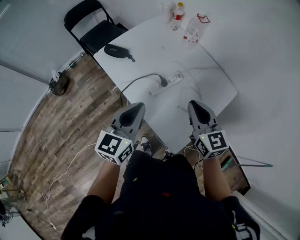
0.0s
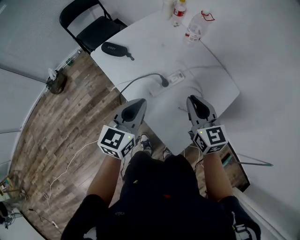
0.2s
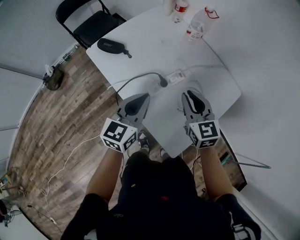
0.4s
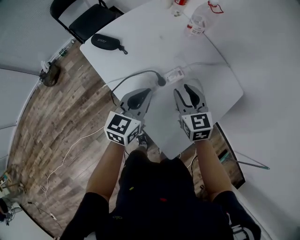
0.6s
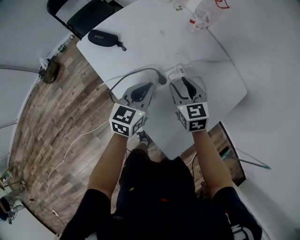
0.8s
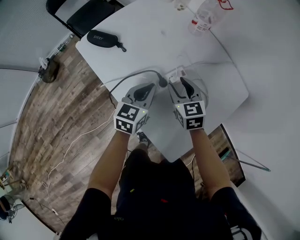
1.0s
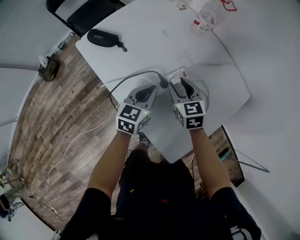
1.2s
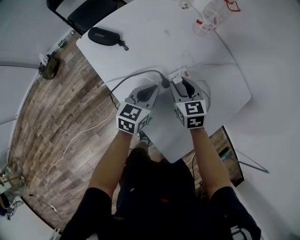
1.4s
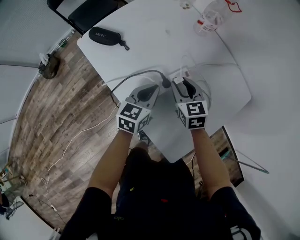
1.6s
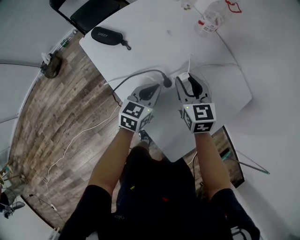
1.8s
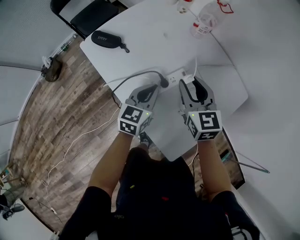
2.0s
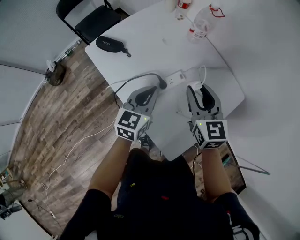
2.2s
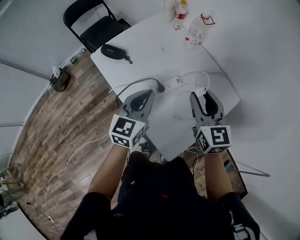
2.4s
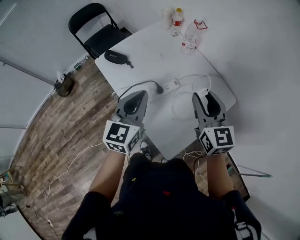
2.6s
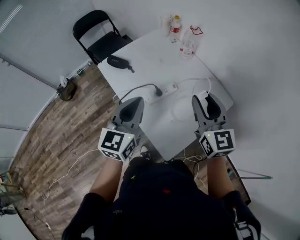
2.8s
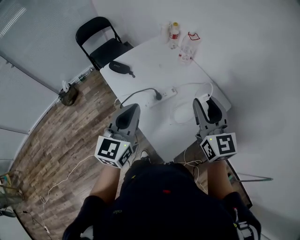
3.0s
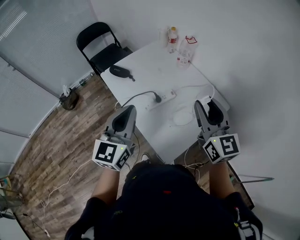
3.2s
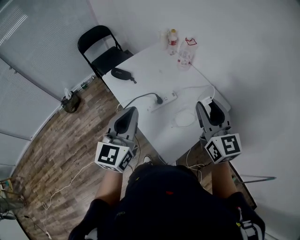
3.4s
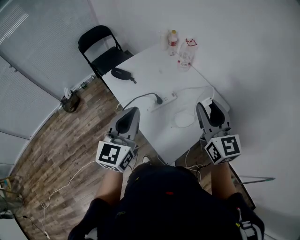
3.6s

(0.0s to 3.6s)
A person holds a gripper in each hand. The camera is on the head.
0.0s - 1.8s: The right gripper shifts some 25 cm forward and downward, and opens up, while the left gripper travels downward and forward by roughly 25 cm.
1.8s - 3.6s: The two grippers go about 35 cm upward and backward. The left gripper turns by some 30 degrees. The right gripper rotates about 30 degrees.

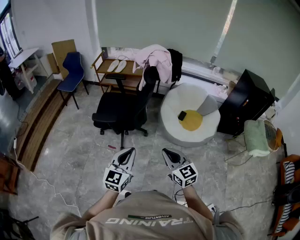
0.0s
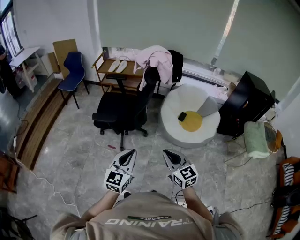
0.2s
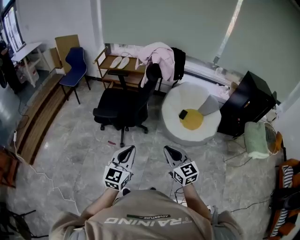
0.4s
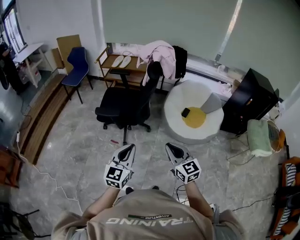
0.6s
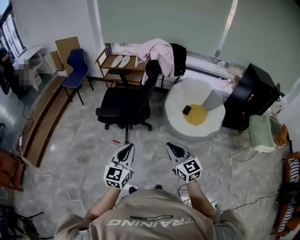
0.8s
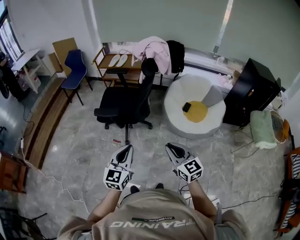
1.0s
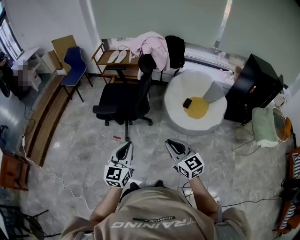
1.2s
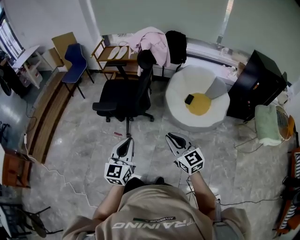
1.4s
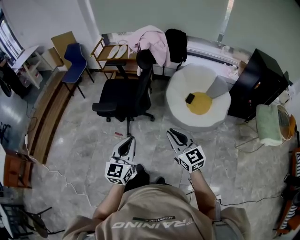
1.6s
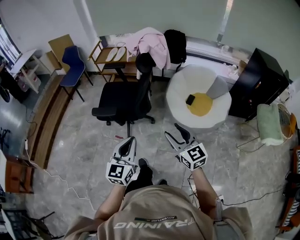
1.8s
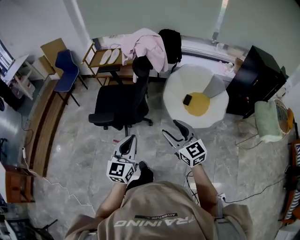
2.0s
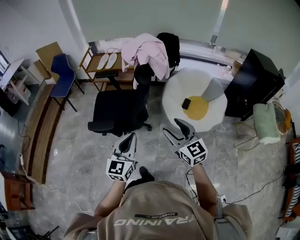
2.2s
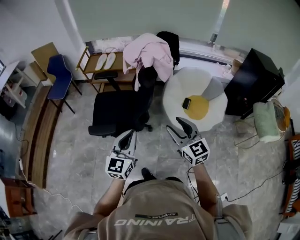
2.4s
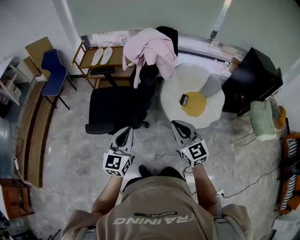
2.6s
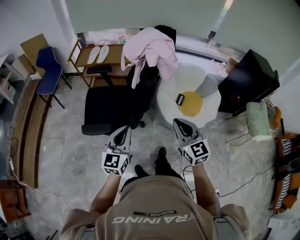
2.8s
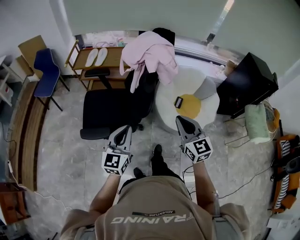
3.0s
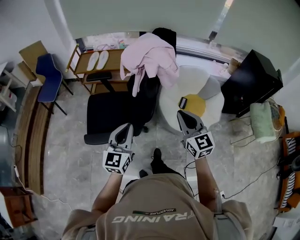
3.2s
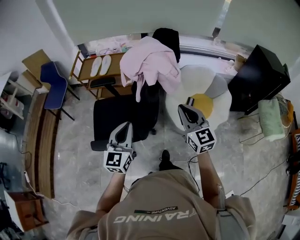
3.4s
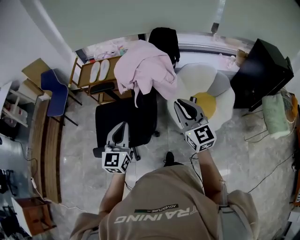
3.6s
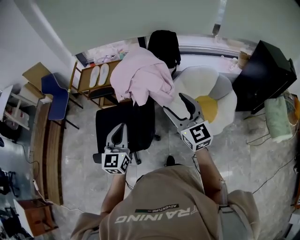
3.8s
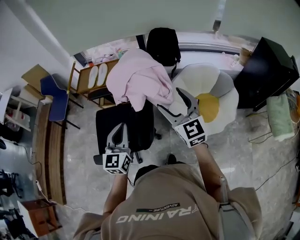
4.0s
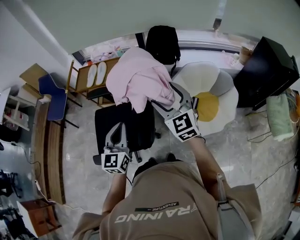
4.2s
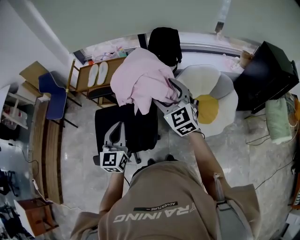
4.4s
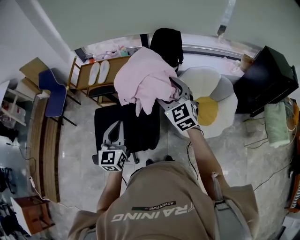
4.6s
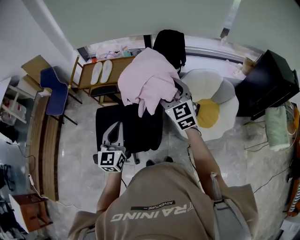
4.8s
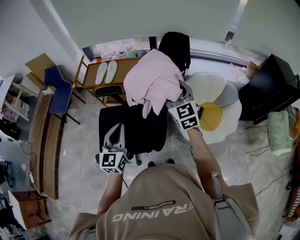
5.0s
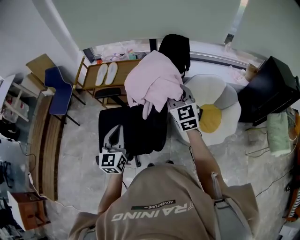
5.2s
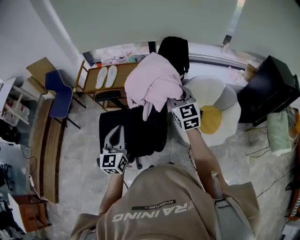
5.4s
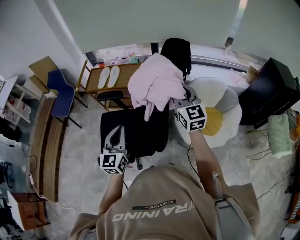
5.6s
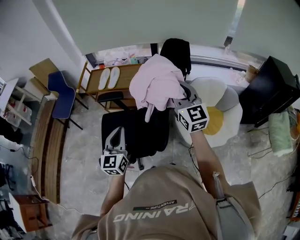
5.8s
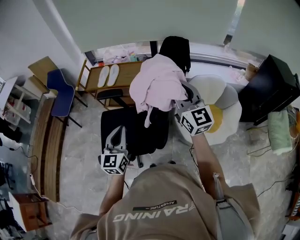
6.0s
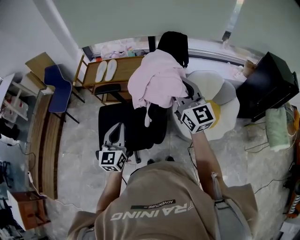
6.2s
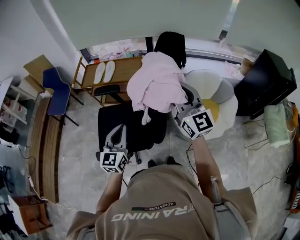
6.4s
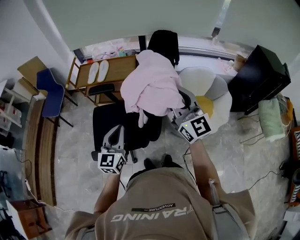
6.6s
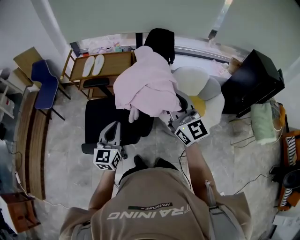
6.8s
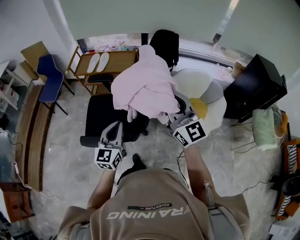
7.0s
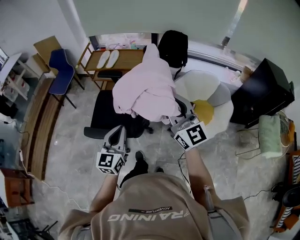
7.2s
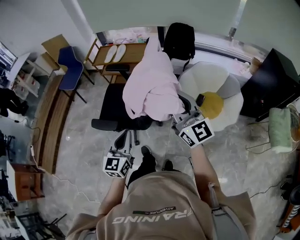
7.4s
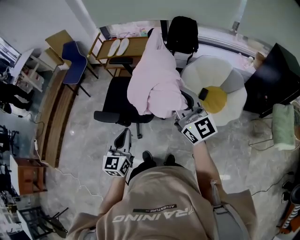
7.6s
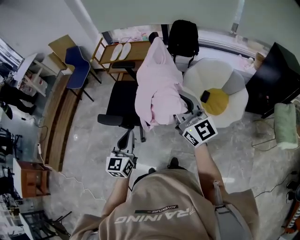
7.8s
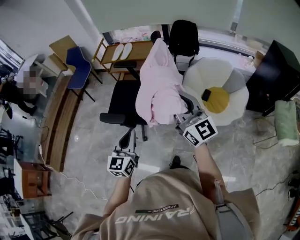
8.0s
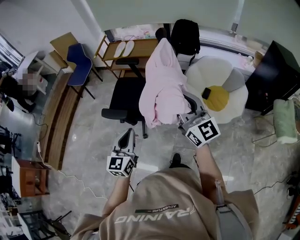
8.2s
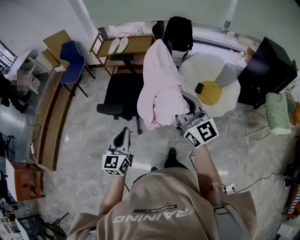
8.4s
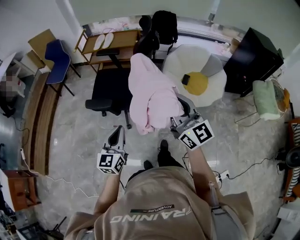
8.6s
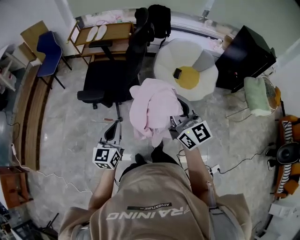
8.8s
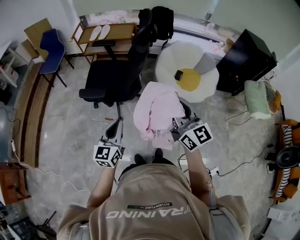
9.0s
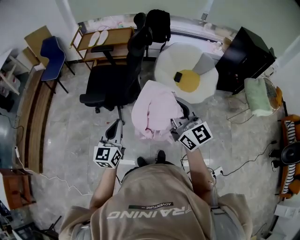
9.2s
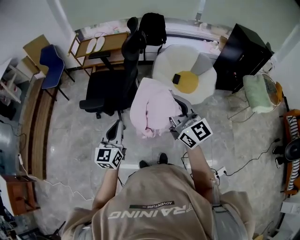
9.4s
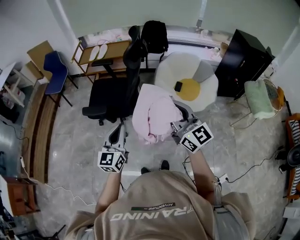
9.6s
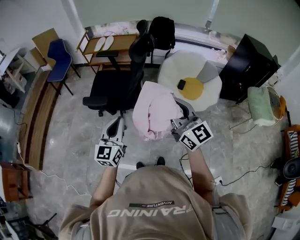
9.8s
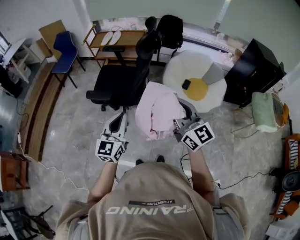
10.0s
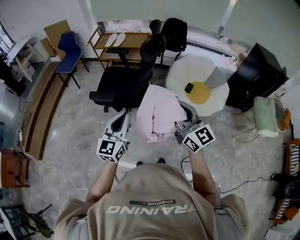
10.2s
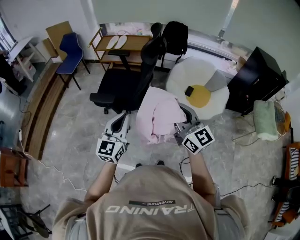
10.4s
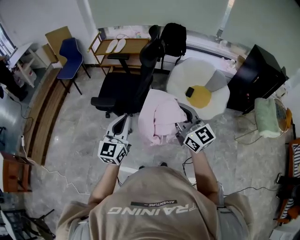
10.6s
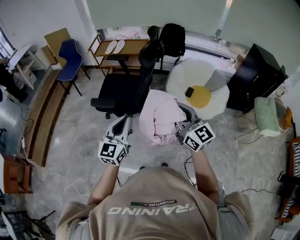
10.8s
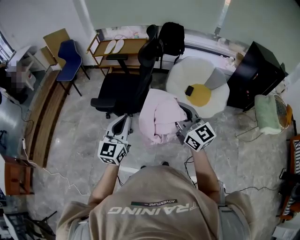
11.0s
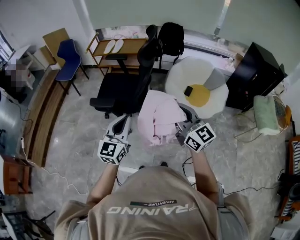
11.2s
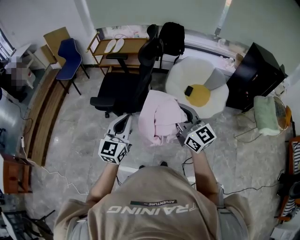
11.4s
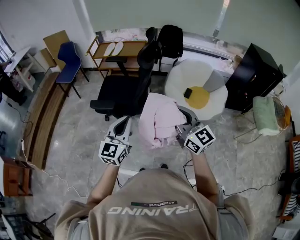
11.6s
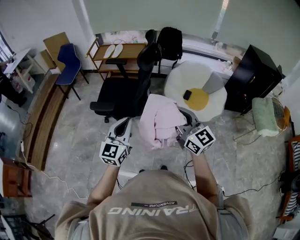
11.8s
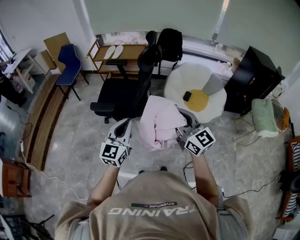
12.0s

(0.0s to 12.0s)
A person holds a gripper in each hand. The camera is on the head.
0.0s - 1.6s: Both grippers move to the right, approximately 5 cm.
1.6s - 3.0s: Both grippers travel together forward, approximately 25 cm. The right gripper opens and closes again.
3.0s - 4.4s: The grippers both shift forward by roughly 25 cm. The right gripper opens.
4.4s - 6.0s: The right gripper travels upward by roughly 10 cm, swivels approximately 30 degrees, and closes; the left gripper goes about 5 cm to the left.
6.0s - 7.6s: The grippers both shift backward by approximately 25 cm.
7.6s - 9.0s: The left gripper goes roughly 15 cm backward and to the left, while the right gripper moves backward, about 20 cm.
9.0s - 10.4s: The left gripper shifts about 5 cm upward.
10.4s - 12.0s: Both grippers stay put.

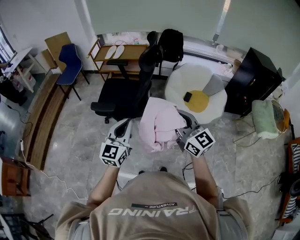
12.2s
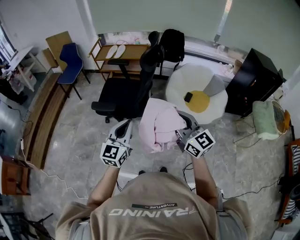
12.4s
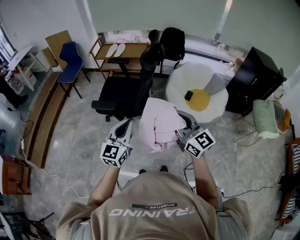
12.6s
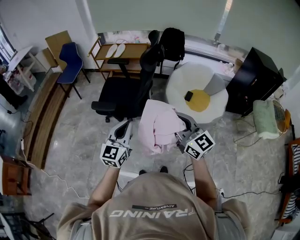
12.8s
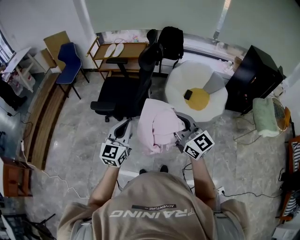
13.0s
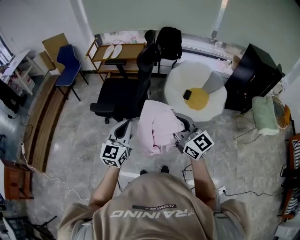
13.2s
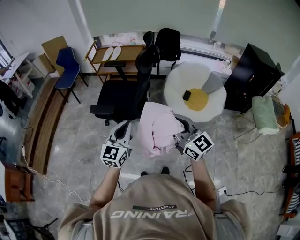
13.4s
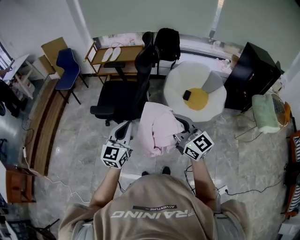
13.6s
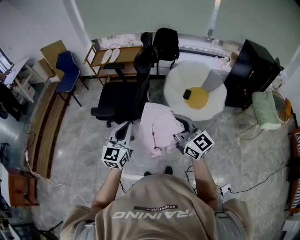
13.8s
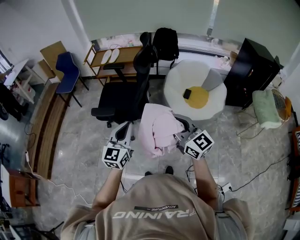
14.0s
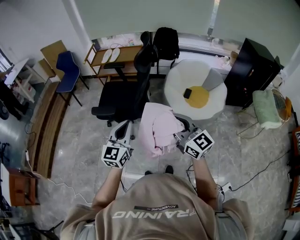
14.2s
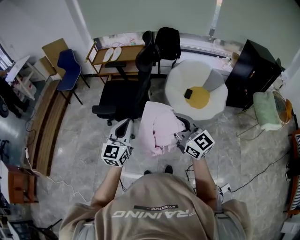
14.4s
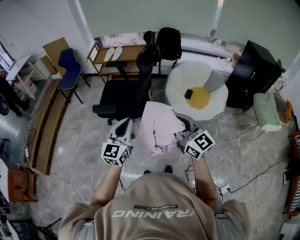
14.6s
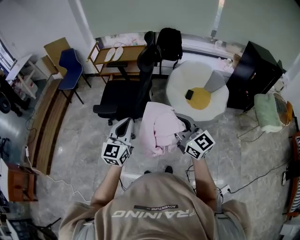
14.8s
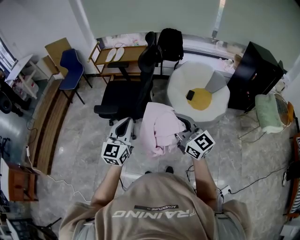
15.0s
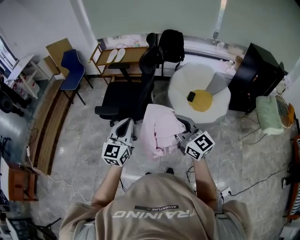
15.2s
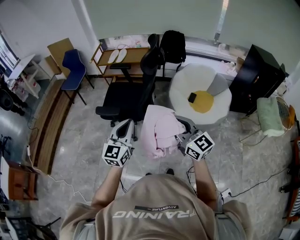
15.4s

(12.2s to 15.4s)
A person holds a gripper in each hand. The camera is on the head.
12.2s - 15.4s: The grippers move only a little.

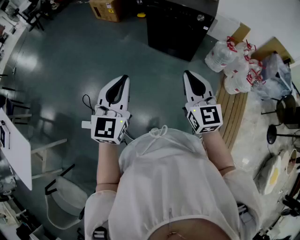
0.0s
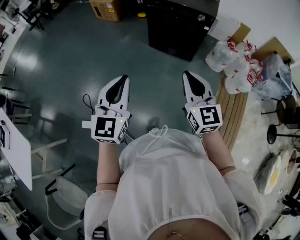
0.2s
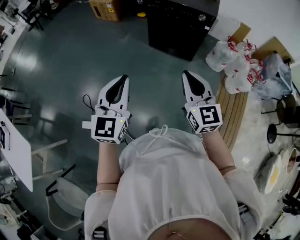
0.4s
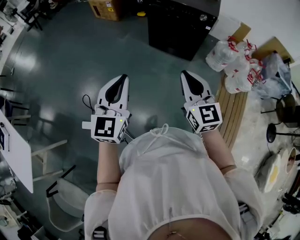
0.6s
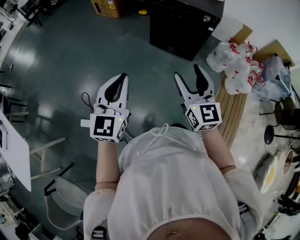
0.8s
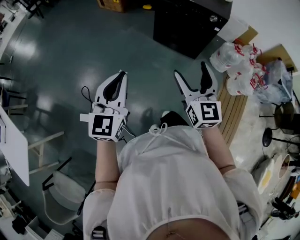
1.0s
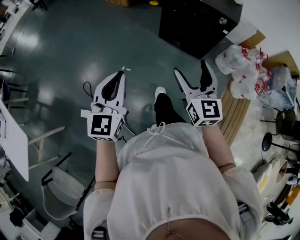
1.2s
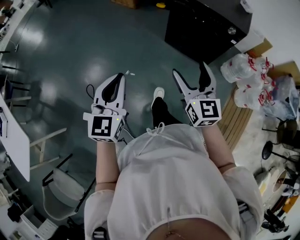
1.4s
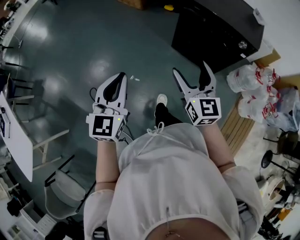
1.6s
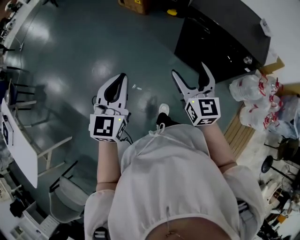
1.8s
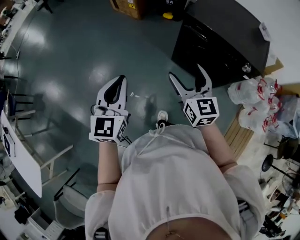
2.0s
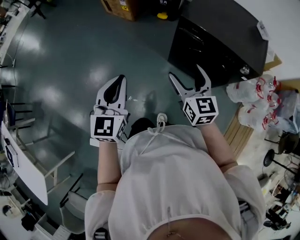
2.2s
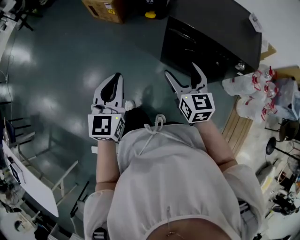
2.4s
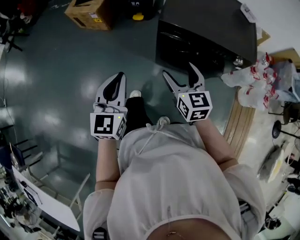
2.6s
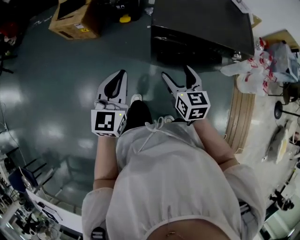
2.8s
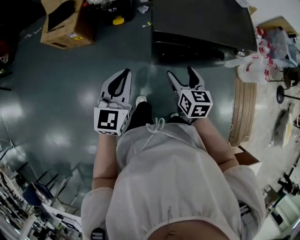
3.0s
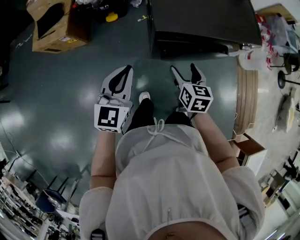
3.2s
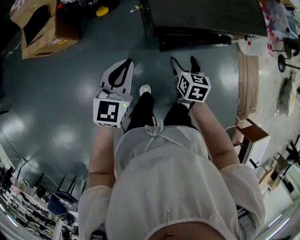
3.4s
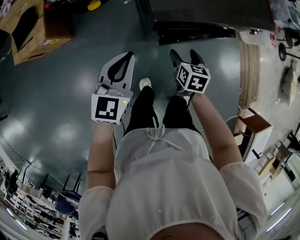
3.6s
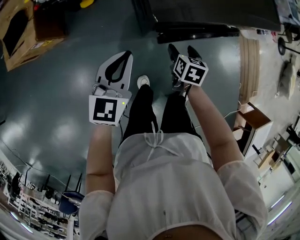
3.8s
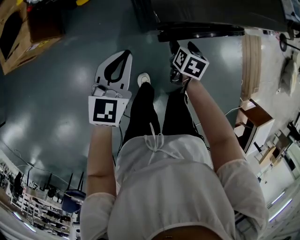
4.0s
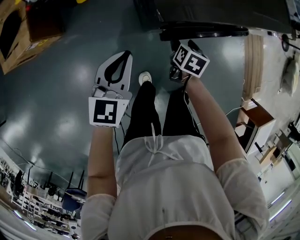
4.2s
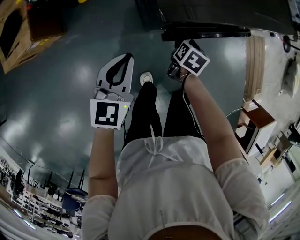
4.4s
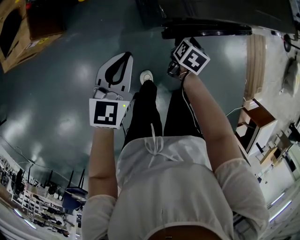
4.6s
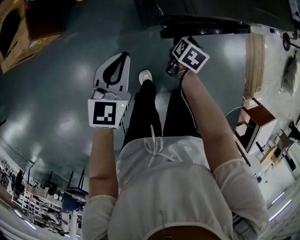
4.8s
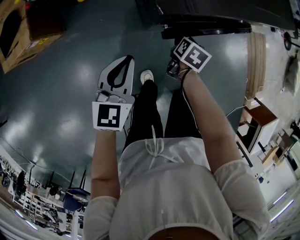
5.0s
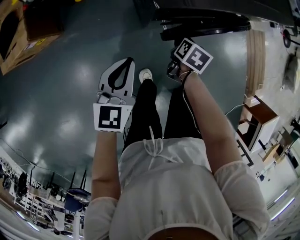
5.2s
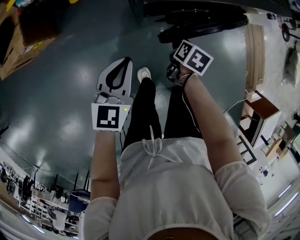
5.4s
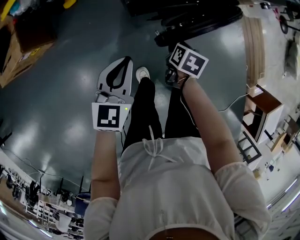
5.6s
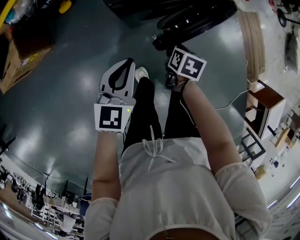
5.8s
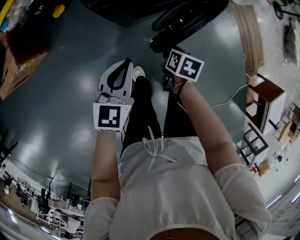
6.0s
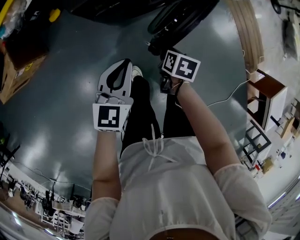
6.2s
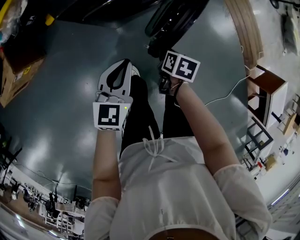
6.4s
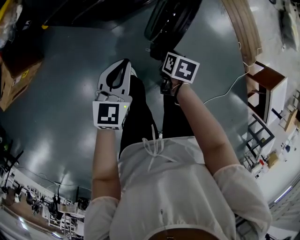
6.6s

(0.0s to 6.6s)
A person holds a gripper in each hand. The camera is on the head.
0.0s - 1.6s: Both grippers travel together forward and to the left, approximately 30 cm. The right gripper opens up.
1.6s - 3.2s: Both grippers are carried roughly 50 cm. The left gripper changes its angle by about 50 degrees. The right gripper tips its fingers downward by about 30 degrees.
3.2s - 5.0s: Both grippers move downward, approximately 25 cm. The right gripper changes its angle by some 40 degrees, and closes up.
5.0s - 6.6s: The left gripper shifts about 25 cm to the right. Meanwhile the right gripper heads to the right and backward, covering about 25 cm.
